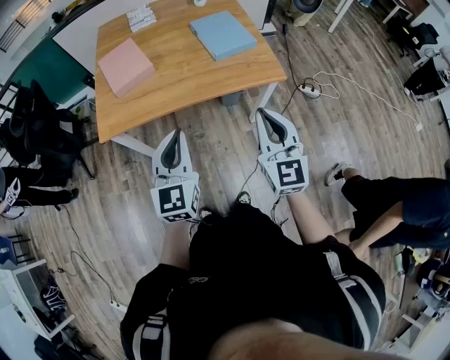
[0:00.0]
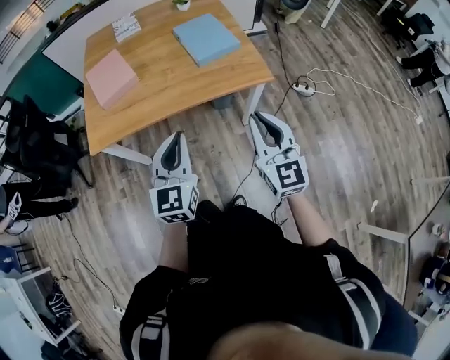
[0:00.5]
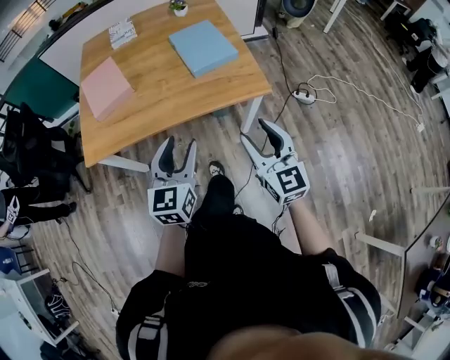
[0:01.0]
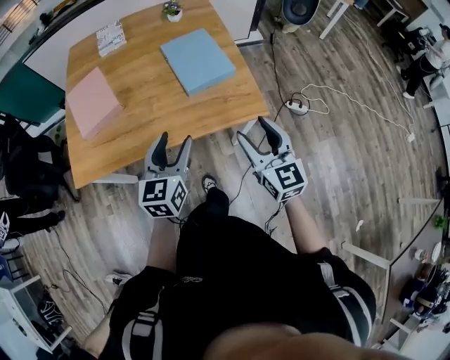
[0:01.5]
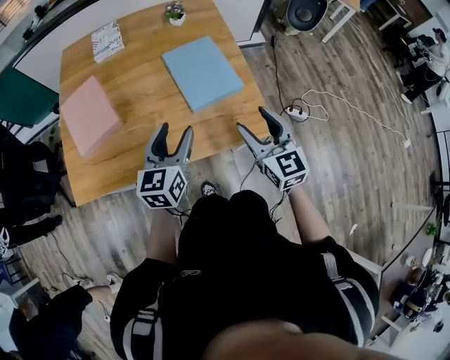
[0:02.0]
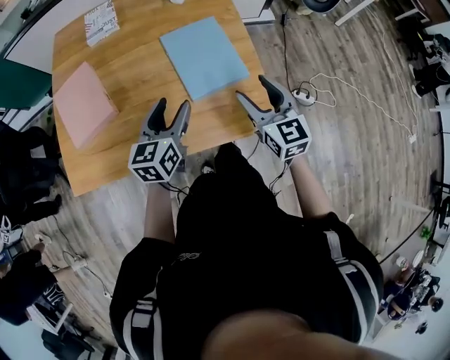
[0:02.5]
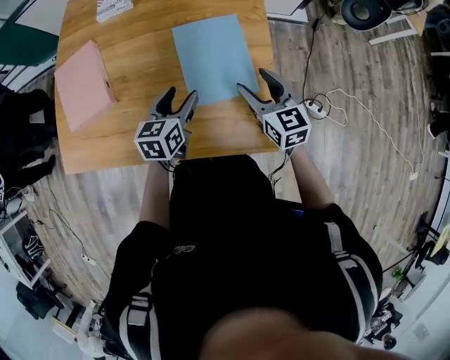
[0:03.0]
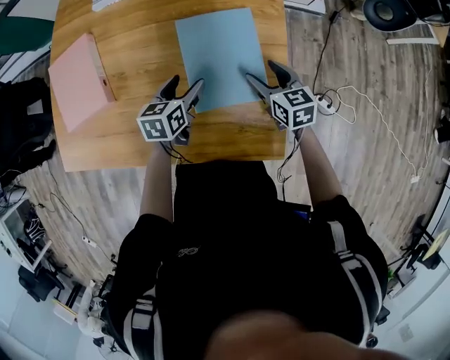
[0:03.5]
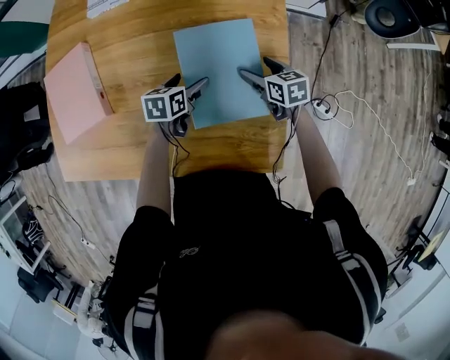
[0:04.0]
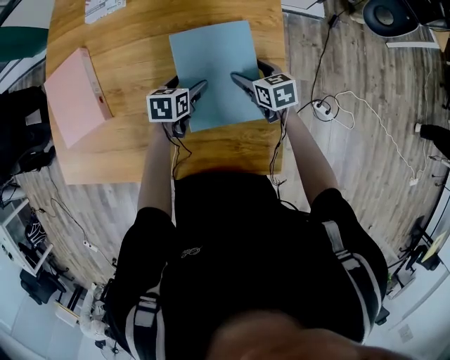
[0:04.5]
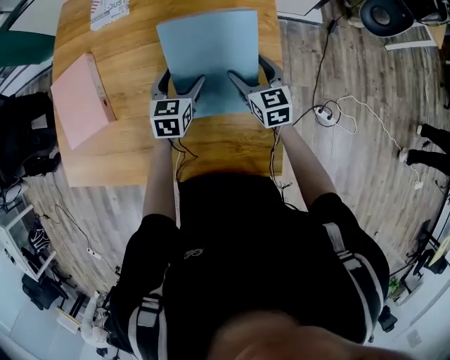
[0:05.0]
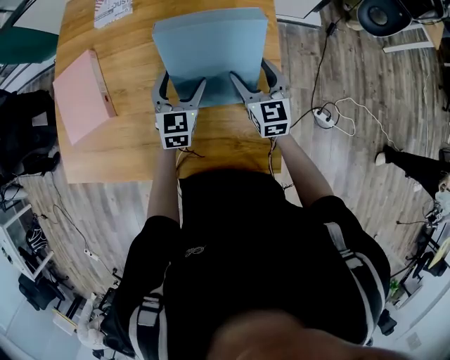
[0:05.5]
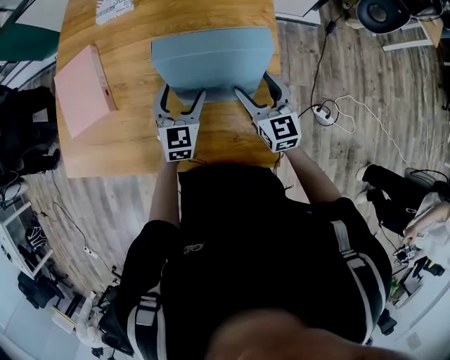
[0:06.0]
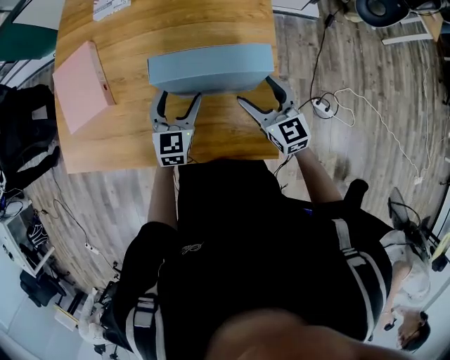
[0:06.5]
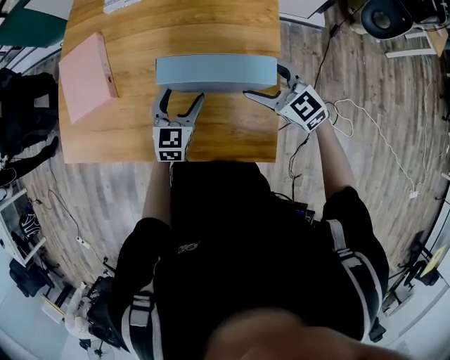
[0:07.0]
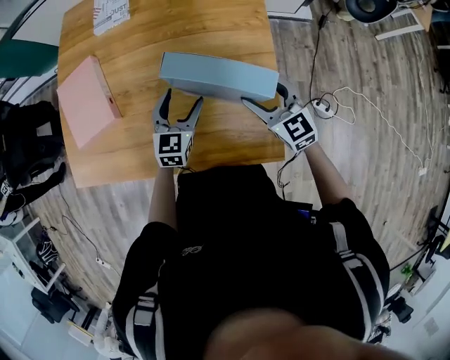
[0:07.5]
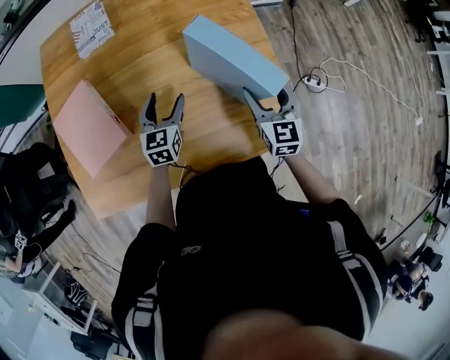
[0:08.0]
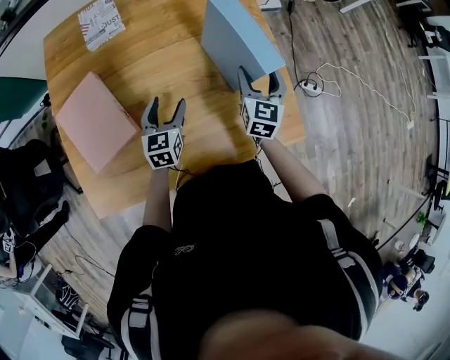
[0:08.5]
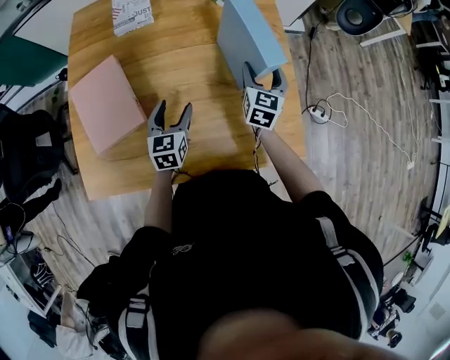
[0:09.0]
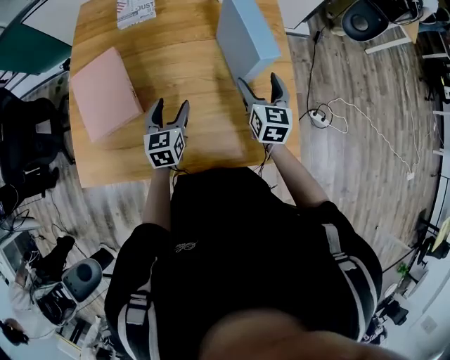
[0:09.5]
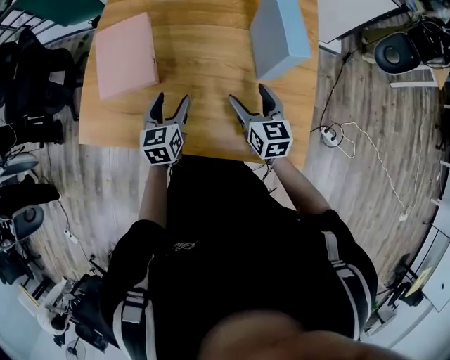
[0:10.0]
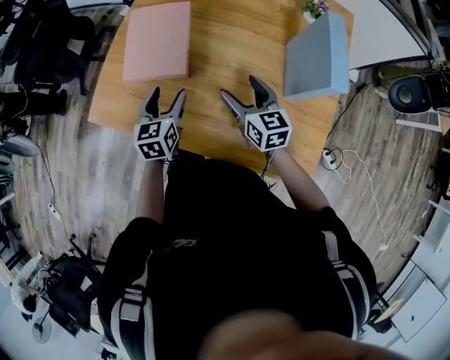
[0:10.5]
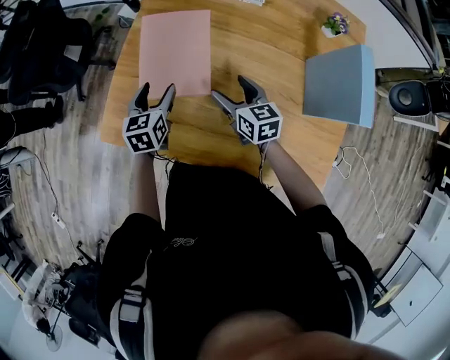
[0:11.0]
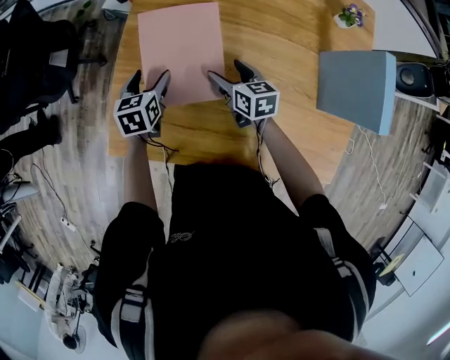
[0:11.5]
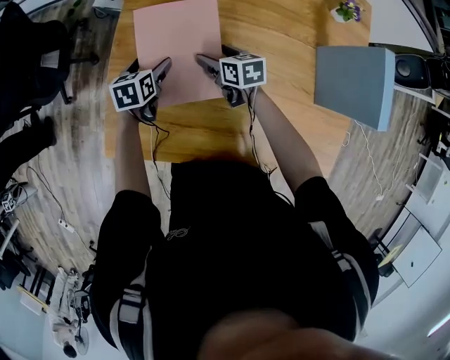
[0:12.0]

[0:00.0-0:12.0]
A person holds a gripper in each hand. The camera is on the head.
0:00.0 to 0:02.0: The grippers both shift forward by about 35 cm. The left gripper rotates roughly 20 degrees, and opens up. Meanwhile the right gripper opens up.
0:02.0 to 0:04.0: The grippers both shift forward and downward by about 40 cm. The left gripper angles its fingers downward, by some 30 degrees, and opens its fingers. The right gripper tilts its fingers about 30 degrees downward.
0:04.0 to 0:06.0: The grippers both shift upward and backward by roughly 15 cm. The right gripper rotates about 40 degrees. The left gripper turns by about 50 degrees.
0:06.0 to 0:08.0: The right gripper ends up approximately 5 cm from where it was, and changes its angle by roughly 30 degrees. Meanwhile the left gripper ends up about 10 cm from where it was.
0:08.0 to 0:10.0: The left gripper changes place by roughly 15 cm, and rotates about 30 degrees, while the right gripper moves about 15 cm, and turns by roughly 30 degrees.
0:10.0 to 0:12.0: The right gripper heads to the left, forward and downward, covering some 40 cm, and turns by about 30 degrees. Meanwhile the left gripper shifts some 40 cm forward, to the left and downward, and turns by roughly 20 degrees.

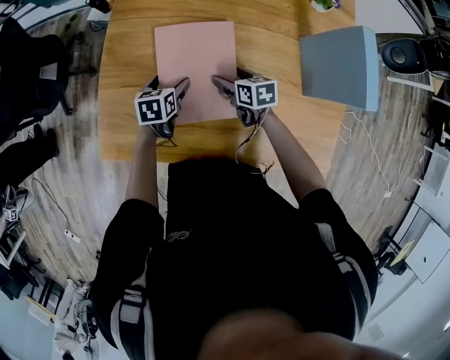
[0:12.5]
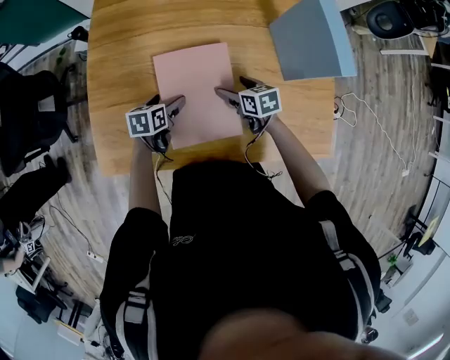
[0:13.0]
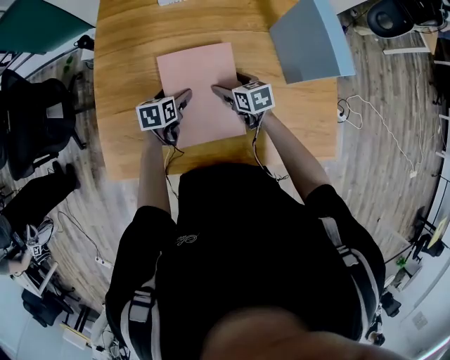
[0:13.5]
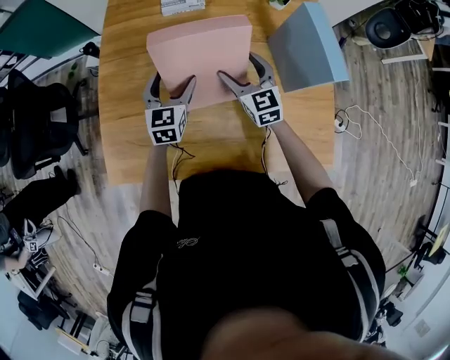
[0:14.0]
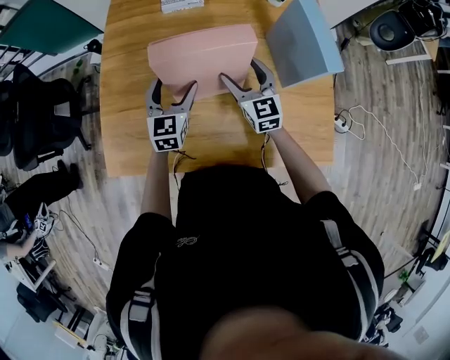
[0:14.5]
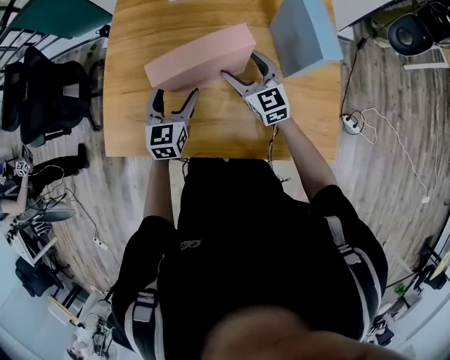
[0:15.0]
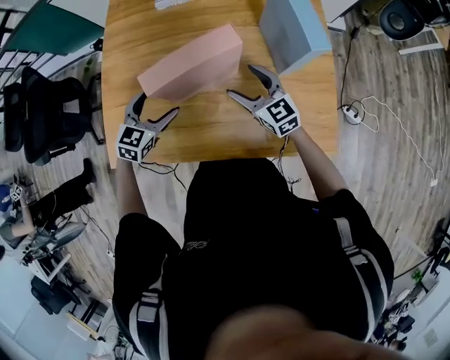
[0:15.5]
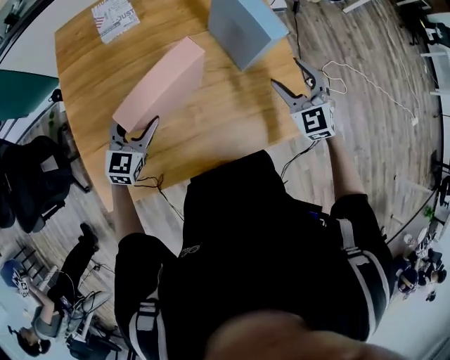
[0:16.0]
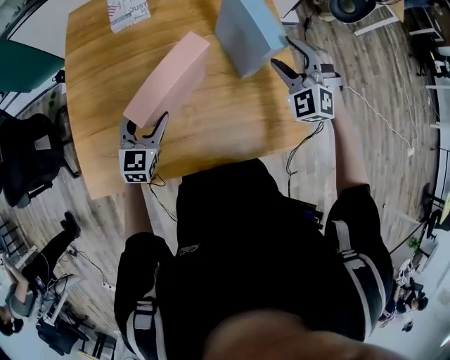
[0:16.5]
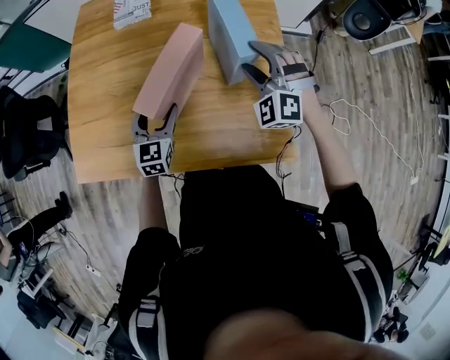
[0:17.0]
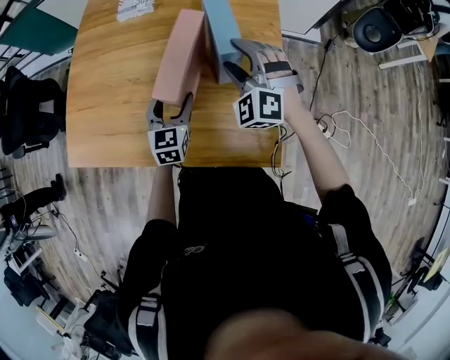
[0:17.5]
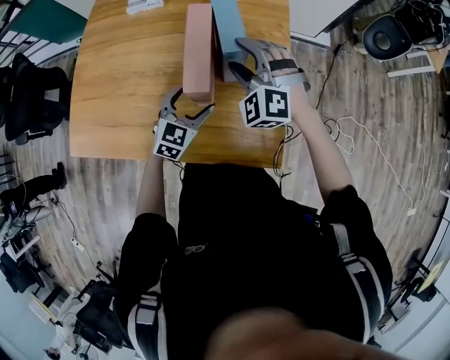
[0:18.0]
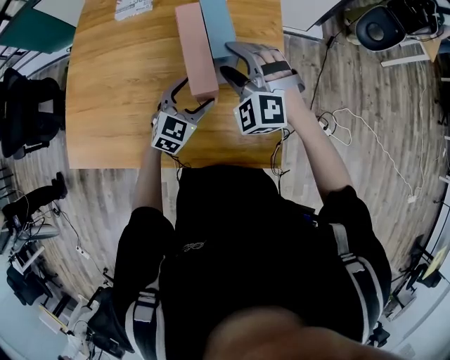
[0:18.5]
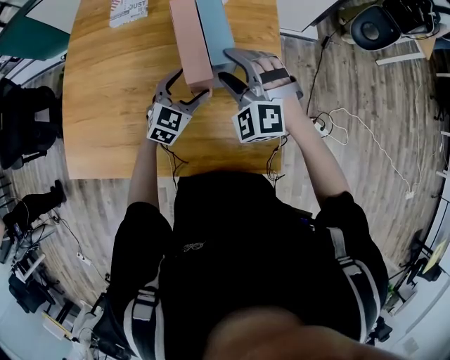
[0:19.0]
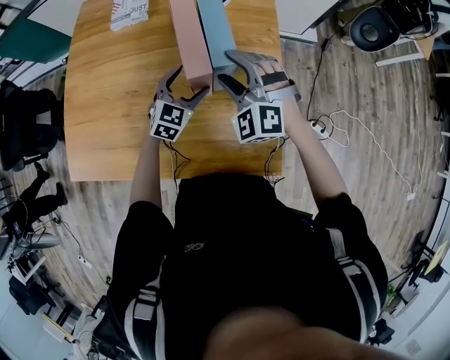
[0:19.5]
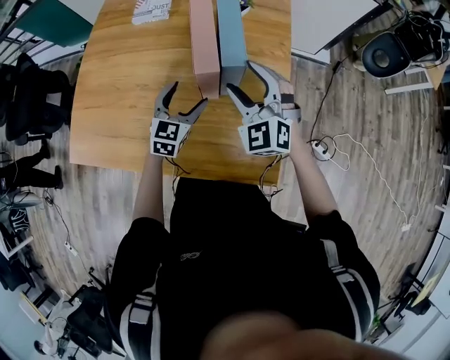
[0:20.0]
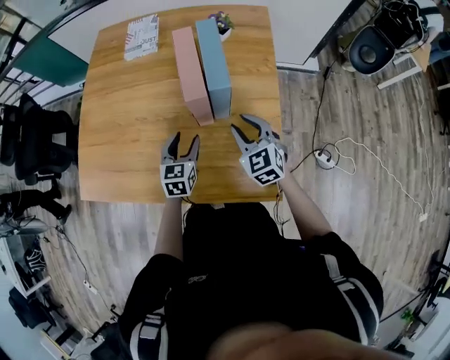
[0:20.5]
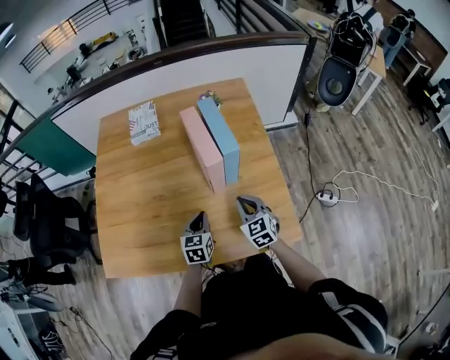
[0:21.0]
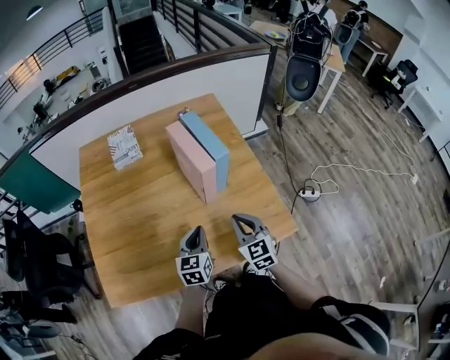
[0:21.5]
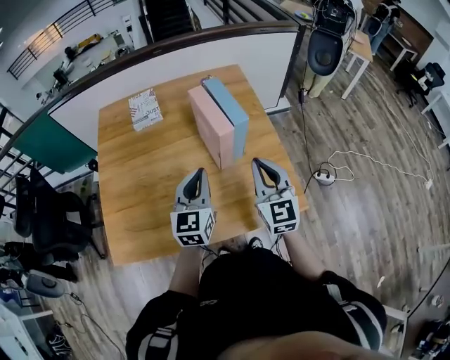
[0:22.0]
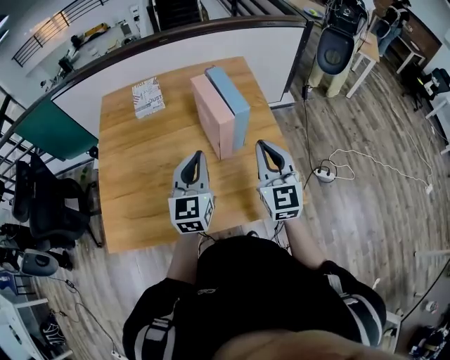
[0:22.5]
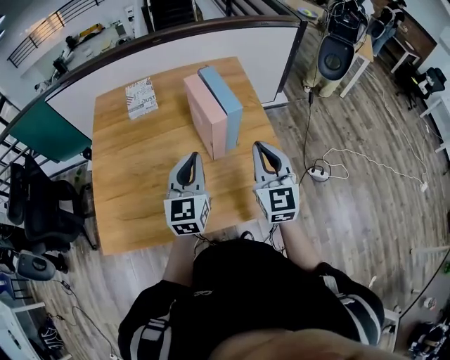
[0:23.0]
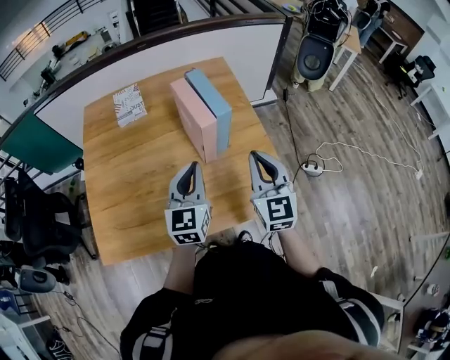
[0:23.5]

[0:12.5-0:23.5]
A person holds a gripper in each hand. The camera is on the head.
0:12.5 to 0:14.5: Both grippers travel together upward and to the right, some 20 cm. The right gripper tips its fingers upward by roughly 30 degrees. The left gripper rotates approximately 40 degrees.
0:14.5 to 0:16.0: The right gripper ends up roughly 25 cm from where it was, and swivels some 30 degrees. The left gripper shifts by approximately 5 cm, and rotates roughly 30 degrees.
0:16.0 to 0:18.0: The left gripper shifts by approximately 30 cm; the right gripper shifts by about 10 cm, and swivels some 40 degrees.
0:18.0 to 0:20.0: The right gripper turns by about 20 degrees, while the left gripper goes some 5 cm forward.
0:20.0 to 0:21.5: The right gripper moves backward and downward, roughly 20 cm, twists some 40 degrees clockwise, seen from behind, and closes up, while the left gripper shifts approximately 15 cm backward and to the left, and closes up.
0:21.5 to 0:23.5: The two grippers go some 15 cm upward.

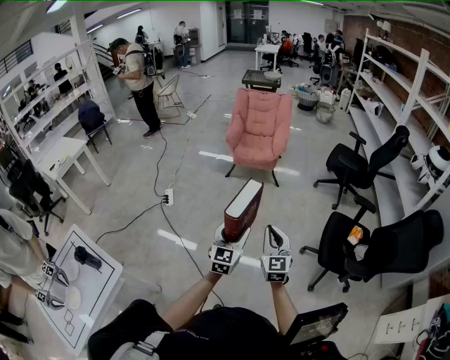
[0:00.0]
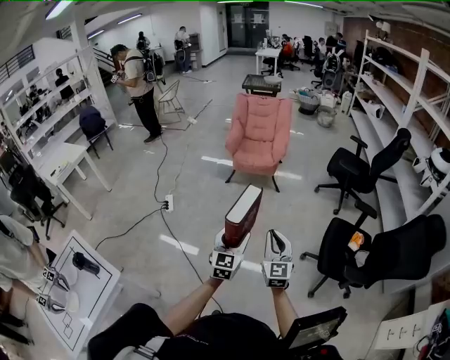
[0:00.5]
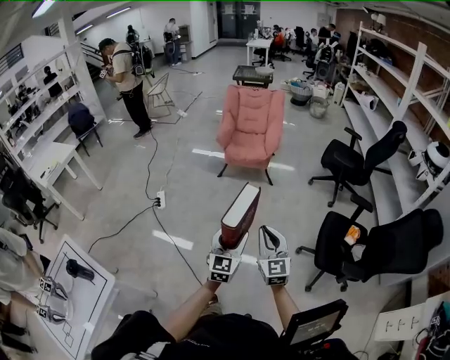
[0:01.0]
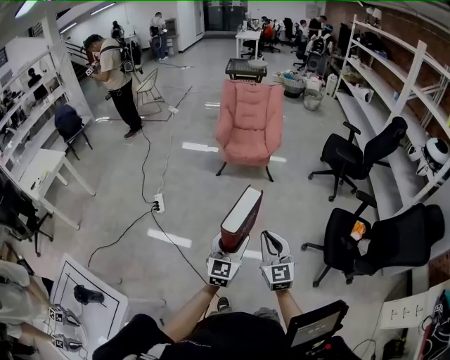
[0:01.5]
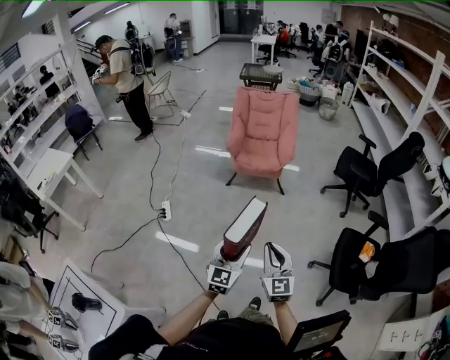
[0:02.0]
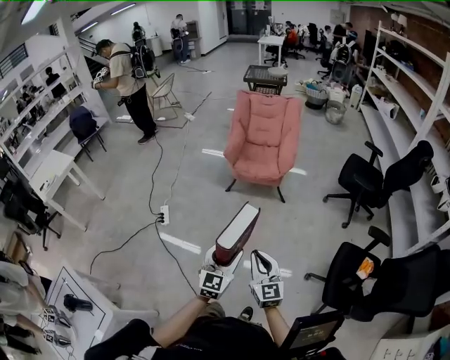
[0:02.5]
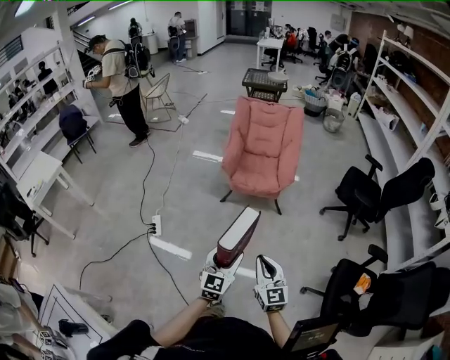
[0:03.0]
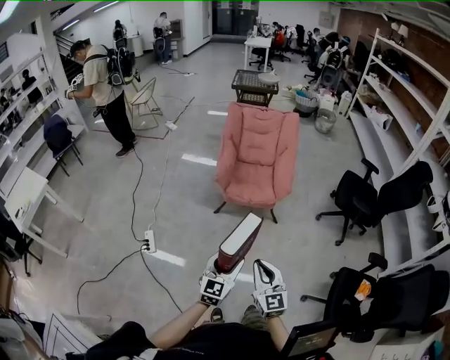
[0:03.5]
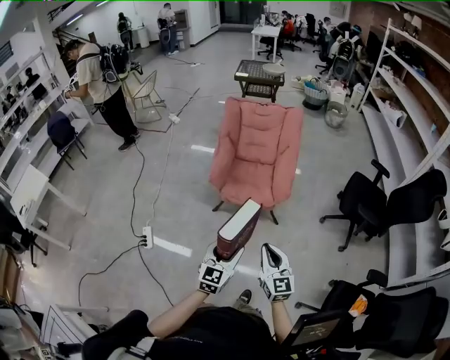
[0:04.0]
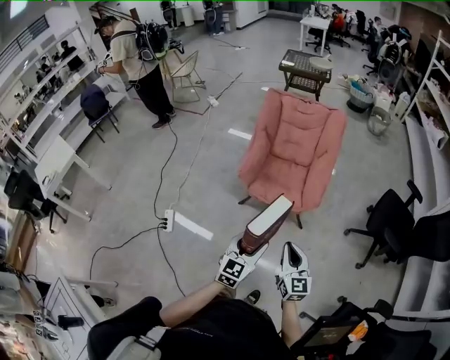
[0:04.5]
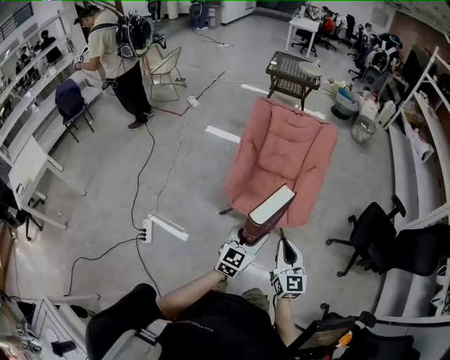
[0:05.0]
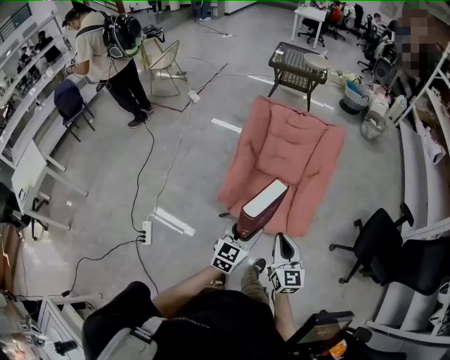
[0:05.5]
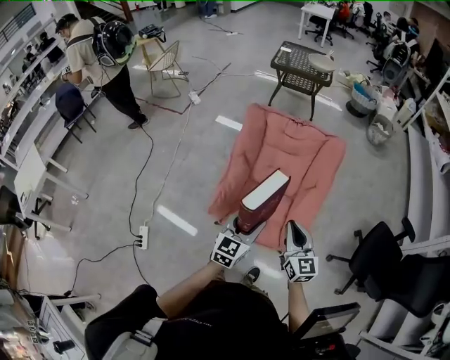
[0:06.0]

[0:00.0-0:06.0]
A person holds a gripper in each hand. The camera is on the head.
0:00.0 to 0:02.0: Both grippers move forward and to the left, approximately 15 cm.
0:02.0 to 0:04.0: Both grippers are carried forward, approximately 40 cm.
0:04.0 to 0:06.0: The pair of grippers is taken forward, approximately 50 cm.
